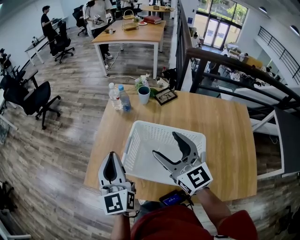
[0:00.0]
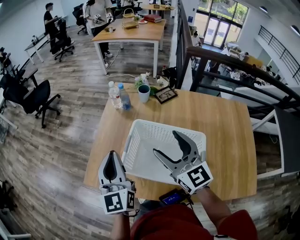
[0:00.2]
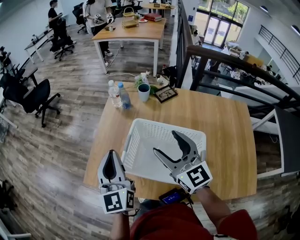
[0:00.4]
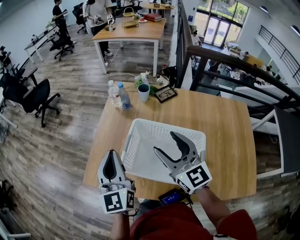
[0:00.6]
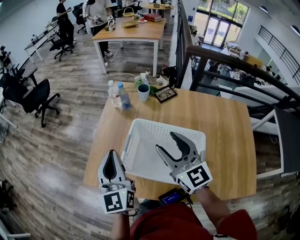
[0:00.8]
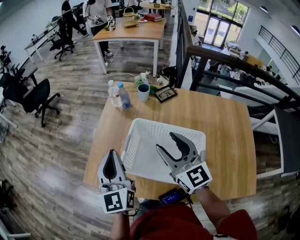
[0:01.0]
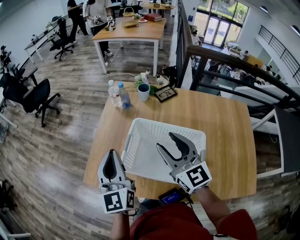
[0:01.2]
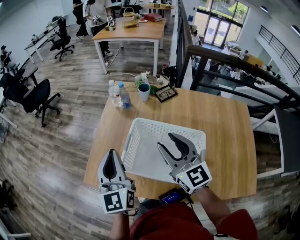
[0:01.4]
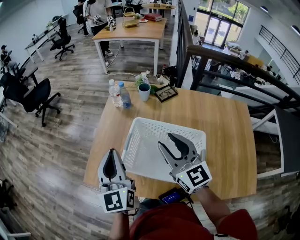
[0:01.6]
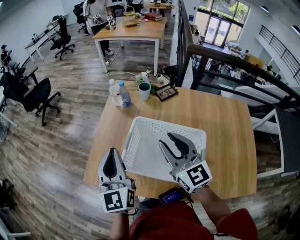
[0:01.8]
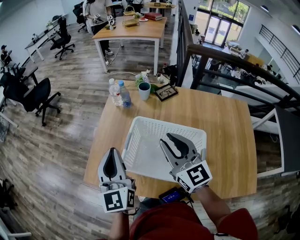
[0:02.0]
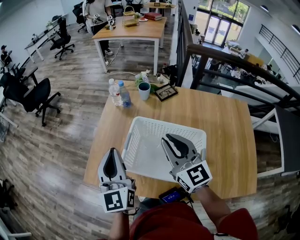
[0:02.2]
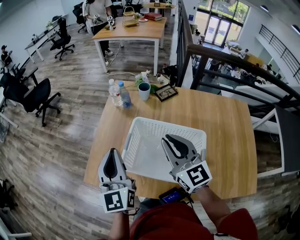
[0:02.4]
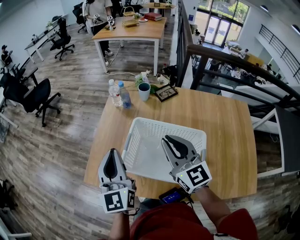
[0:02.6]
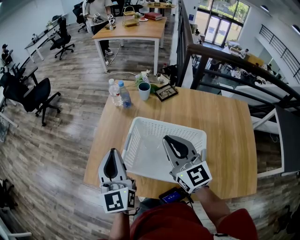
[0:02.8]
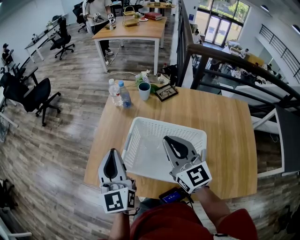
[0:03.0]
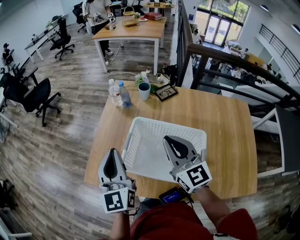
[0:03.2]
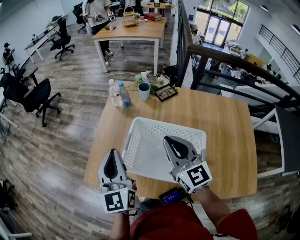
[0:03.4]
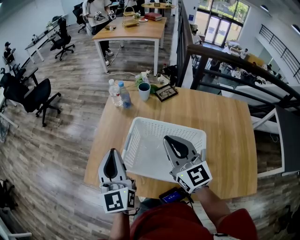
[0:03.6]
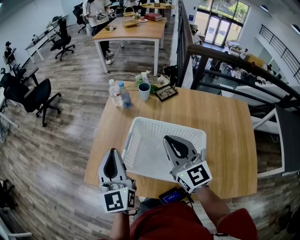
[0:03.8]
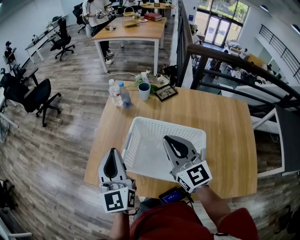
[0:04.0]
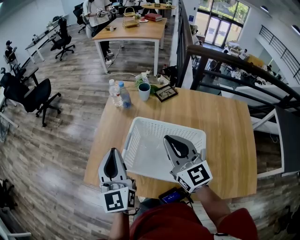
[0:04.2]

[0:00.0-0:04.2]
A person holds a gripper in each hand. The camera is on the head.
0:00.0 to 0:01.4: The right gripper closes its fingers.
0:01.4 to 0:02.8: The right gripper closes up.
0:02.8 to 0:04.2: Both grippers stay about where they are.

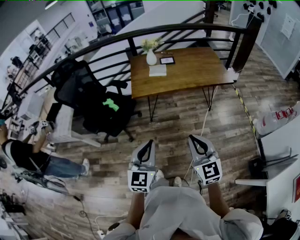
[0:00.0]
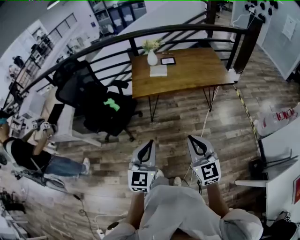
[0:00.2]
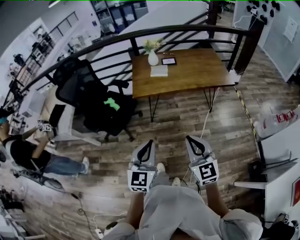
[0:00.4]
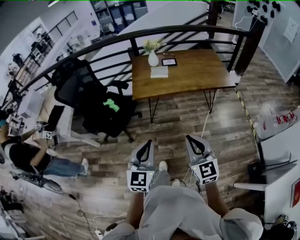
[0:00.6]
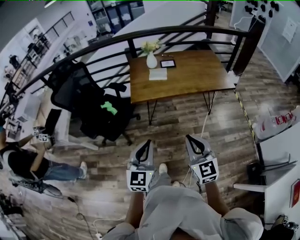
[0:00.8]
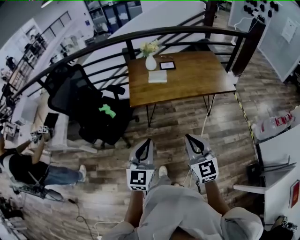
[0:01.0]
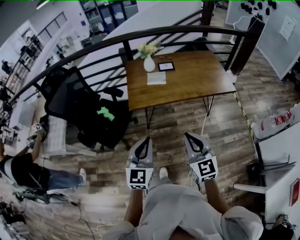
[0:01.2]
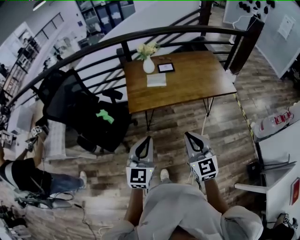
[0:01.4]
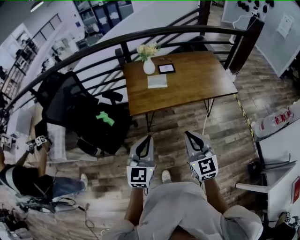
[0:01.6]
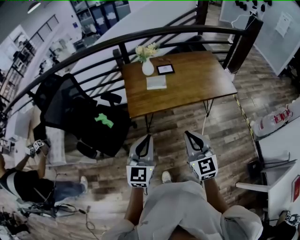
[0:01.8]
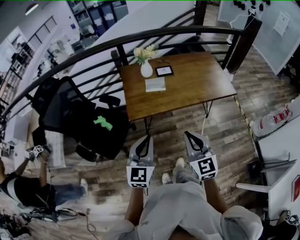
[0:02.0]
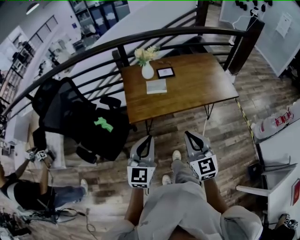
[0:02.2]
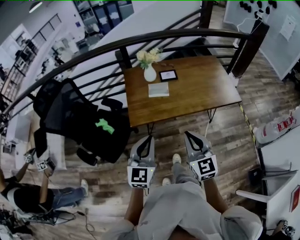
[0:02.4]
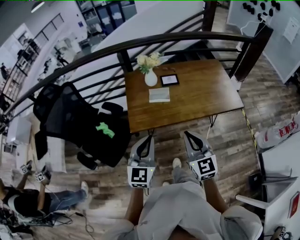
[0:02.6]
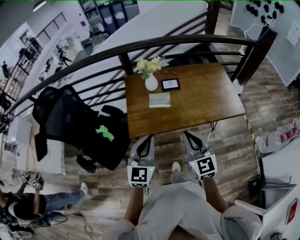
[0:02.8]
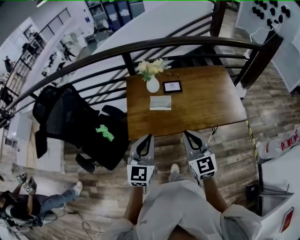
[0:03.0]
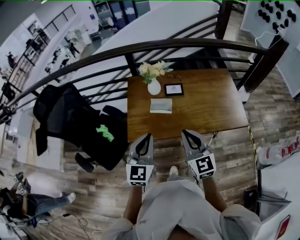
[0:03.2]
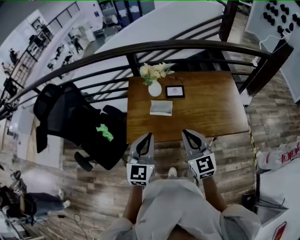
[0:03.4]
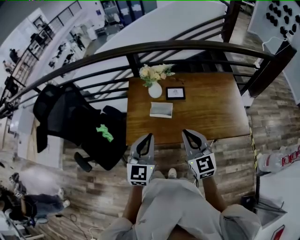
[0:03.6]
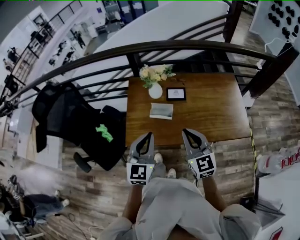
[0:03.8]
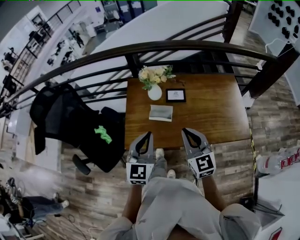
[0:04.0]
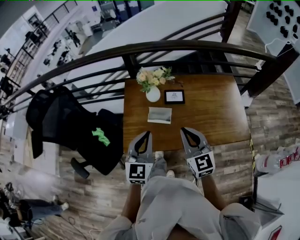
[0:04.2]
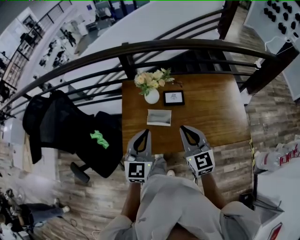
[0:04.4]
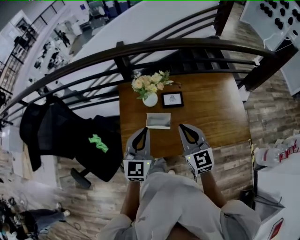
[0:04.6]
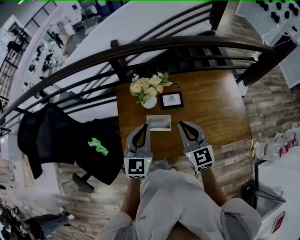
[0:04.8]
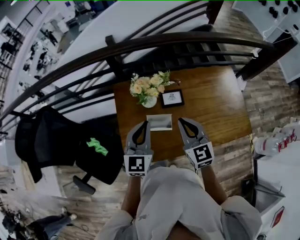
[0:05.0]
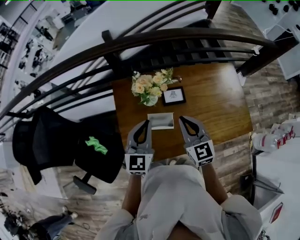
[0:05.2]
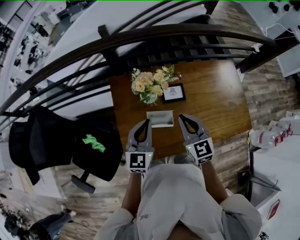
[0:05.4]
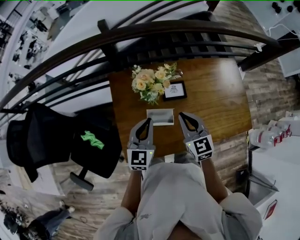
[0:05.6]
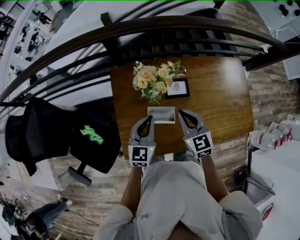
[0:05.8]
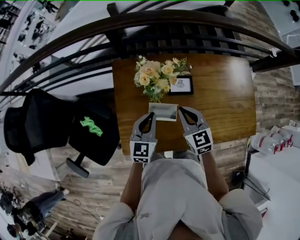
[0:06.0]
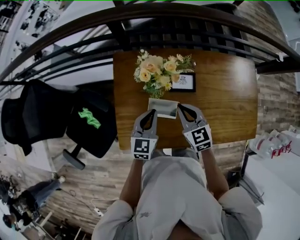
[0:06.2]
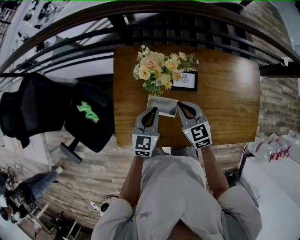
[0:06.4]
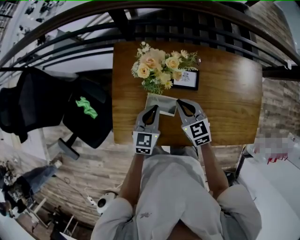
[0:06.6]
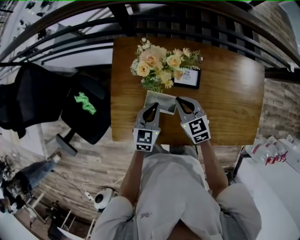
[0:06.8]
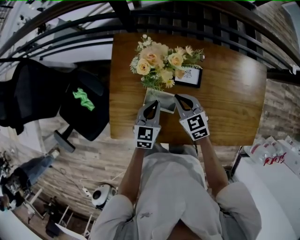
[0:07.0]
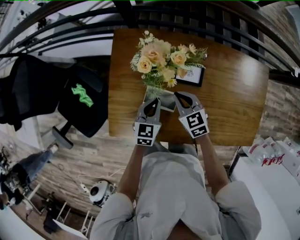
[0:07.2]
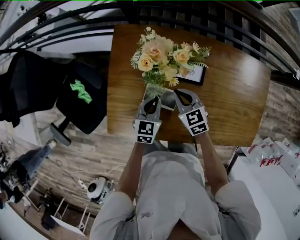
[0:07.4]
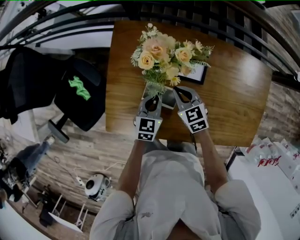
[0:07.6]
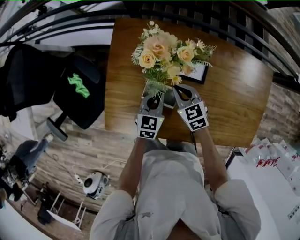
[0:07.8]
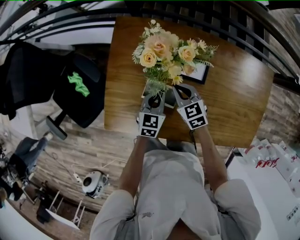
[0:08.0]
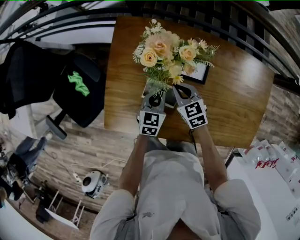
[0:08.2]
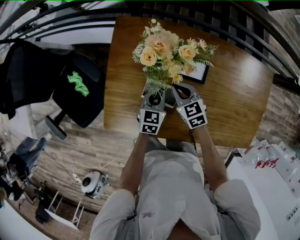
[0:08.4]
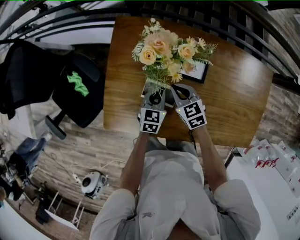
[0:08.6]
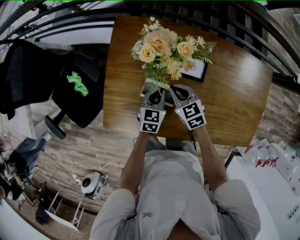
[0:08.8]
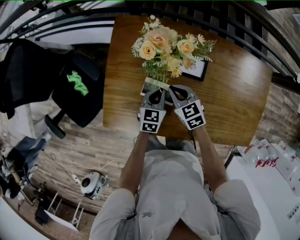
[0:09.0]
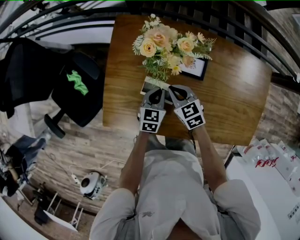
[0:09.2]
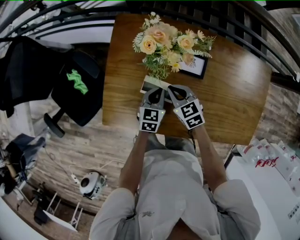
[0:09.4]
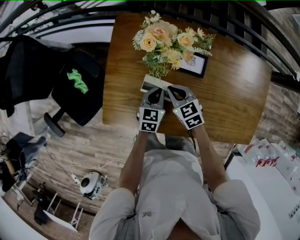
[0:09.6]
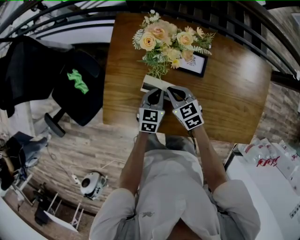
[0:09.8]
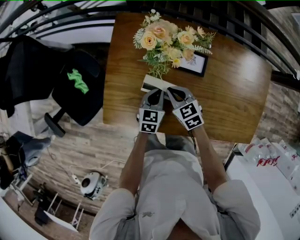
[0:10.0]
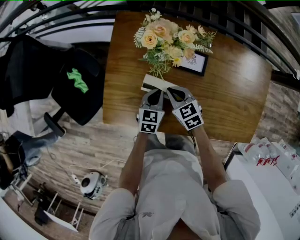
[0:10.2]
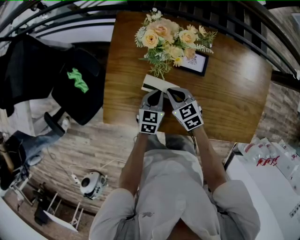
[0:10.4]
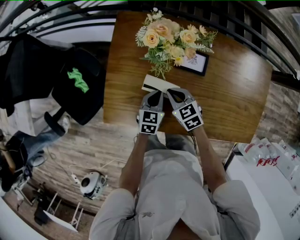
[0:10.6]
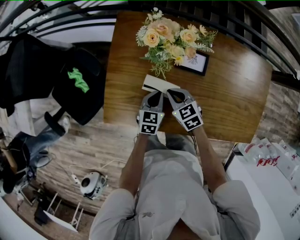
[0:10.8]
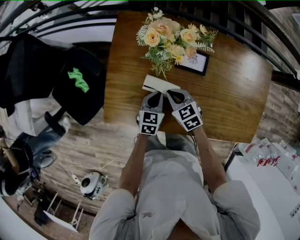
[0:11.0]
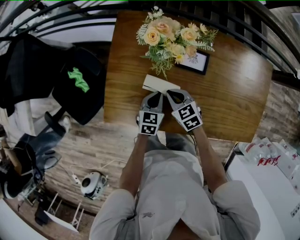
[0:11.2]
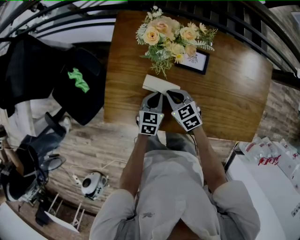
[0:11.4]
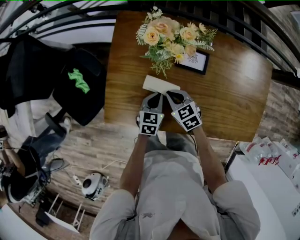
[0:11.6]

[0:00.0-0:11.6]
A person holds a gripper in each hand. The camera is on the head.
0:00.0 to 0:01.4: Both grippers move forward, about 20 cm.
0:01.4 to 0:02.8: The two grippers go some 20 cm forward.
0:02.8 to 0:04.4: Both grippers move forward, approximately 20 cm.
0:04.4 to 0:05.8: Both grippers travel together forward and downward, about 20 cm.
0:05.8 to 0:07.2: The two grippers go roughly 15 cm downward. The right gripper swivels approximately 30 degrees.
0:07.2 to 0:08.8: The left gripper moves downward, approximately 5 cm.
0:08.8 to 0:10.2: The grippers stay close to where they were, moving slightly.
0:10.2 to 0:11.6: There are only small adjustments of the grippers.

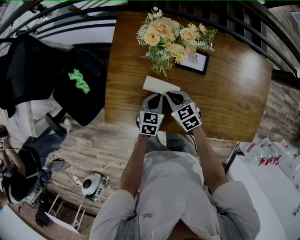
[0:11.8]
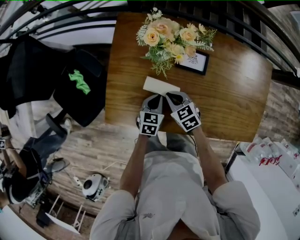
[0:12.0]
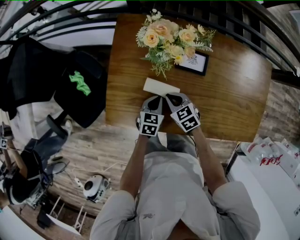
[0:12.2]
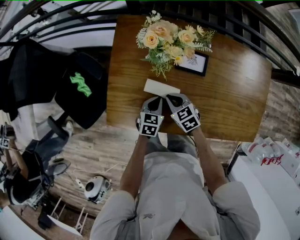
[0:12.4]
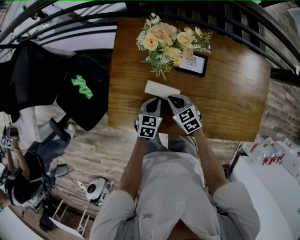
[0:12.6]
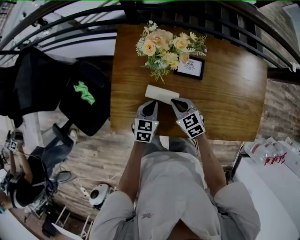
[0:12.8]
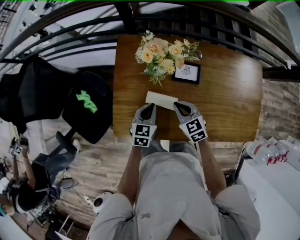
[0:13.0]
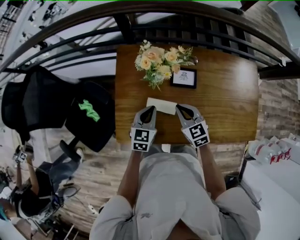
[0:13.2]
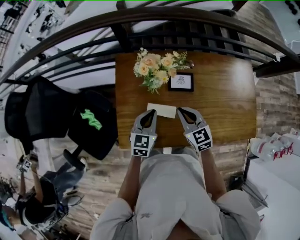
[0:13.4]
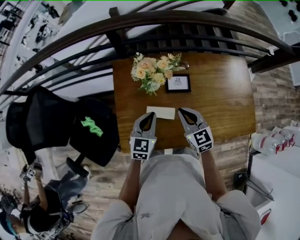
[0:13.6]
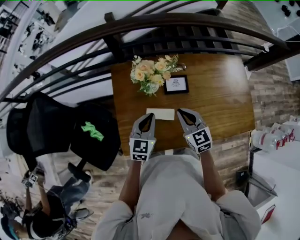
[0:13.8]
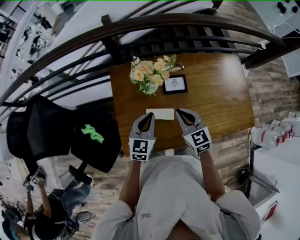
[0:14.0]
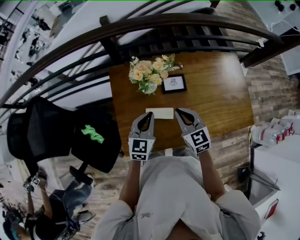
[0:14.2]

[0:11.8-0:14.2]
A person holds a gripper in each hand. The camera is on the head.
0:11.8 to 0:13.0: The two grippers go some 5 cm upward.
0:13.0 to 0:14.2: The grippers both shift upward by approximately 10 cm. The right gripper swivels some 20 degrees. The left gripper rotates roughly 20 degrees.

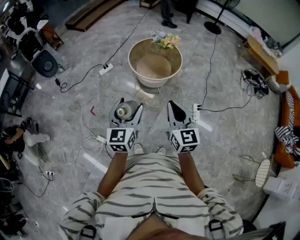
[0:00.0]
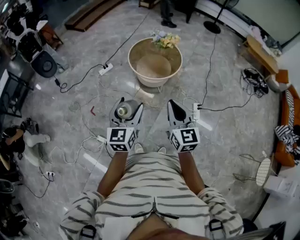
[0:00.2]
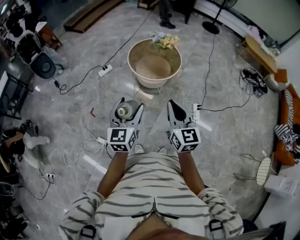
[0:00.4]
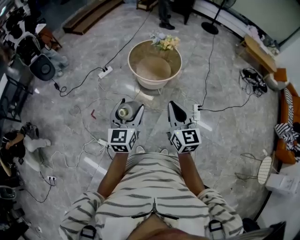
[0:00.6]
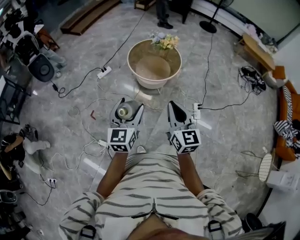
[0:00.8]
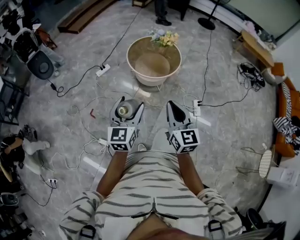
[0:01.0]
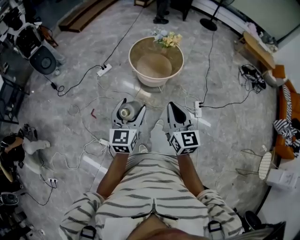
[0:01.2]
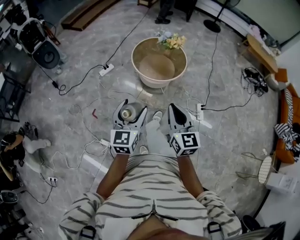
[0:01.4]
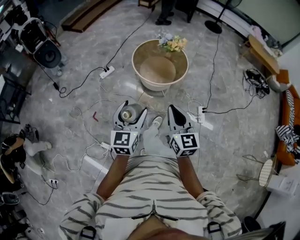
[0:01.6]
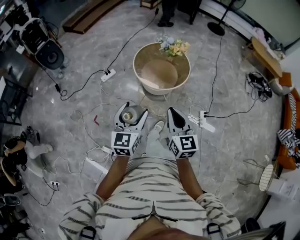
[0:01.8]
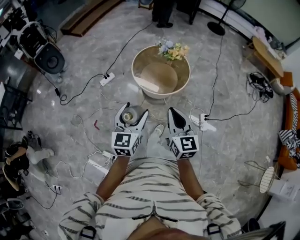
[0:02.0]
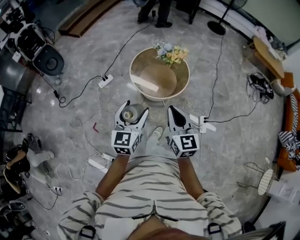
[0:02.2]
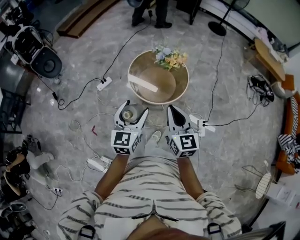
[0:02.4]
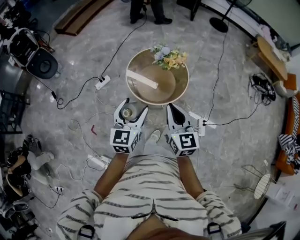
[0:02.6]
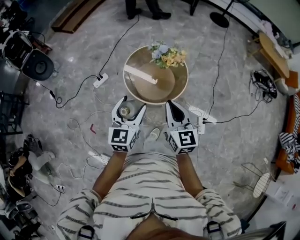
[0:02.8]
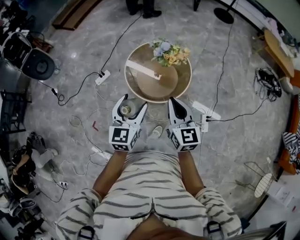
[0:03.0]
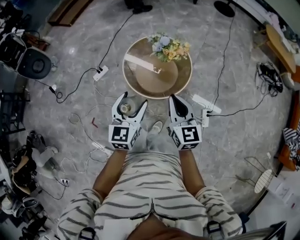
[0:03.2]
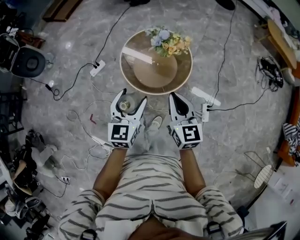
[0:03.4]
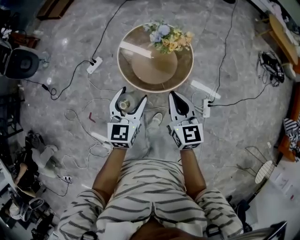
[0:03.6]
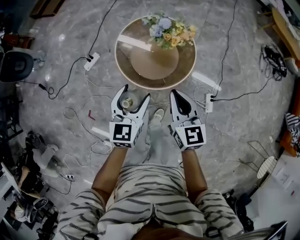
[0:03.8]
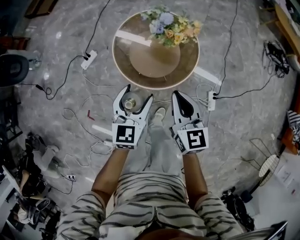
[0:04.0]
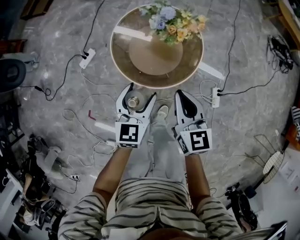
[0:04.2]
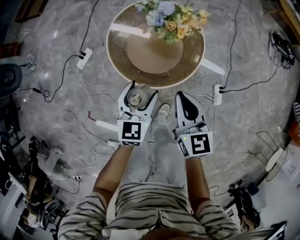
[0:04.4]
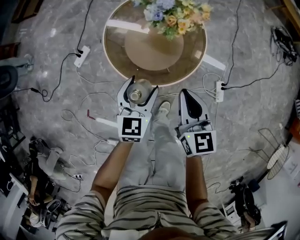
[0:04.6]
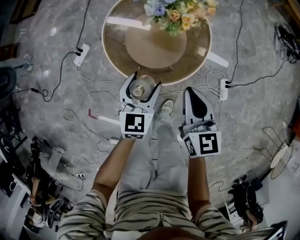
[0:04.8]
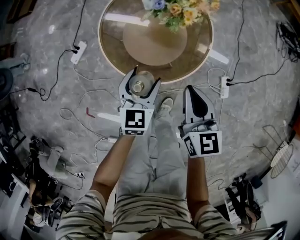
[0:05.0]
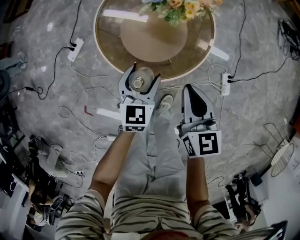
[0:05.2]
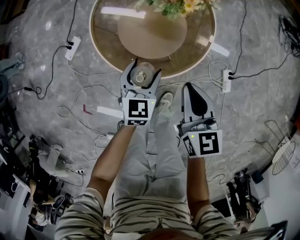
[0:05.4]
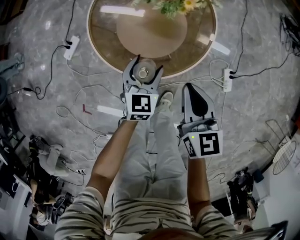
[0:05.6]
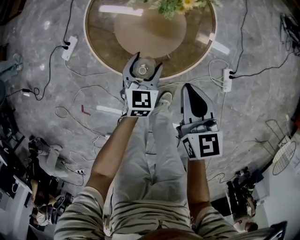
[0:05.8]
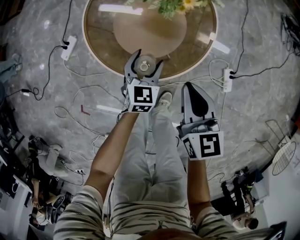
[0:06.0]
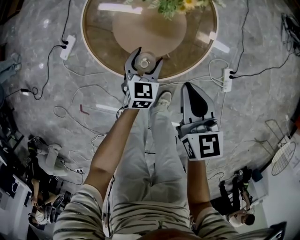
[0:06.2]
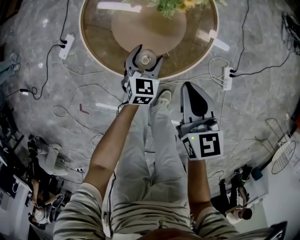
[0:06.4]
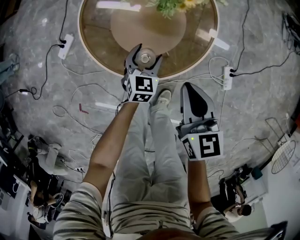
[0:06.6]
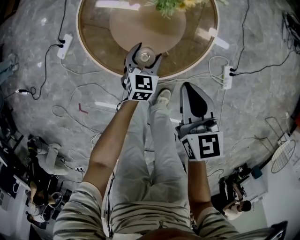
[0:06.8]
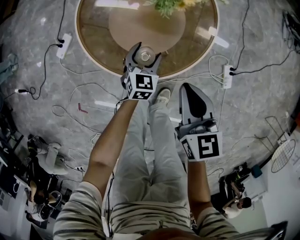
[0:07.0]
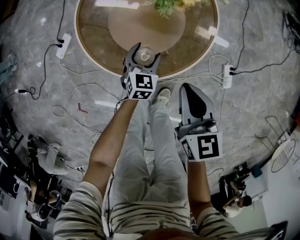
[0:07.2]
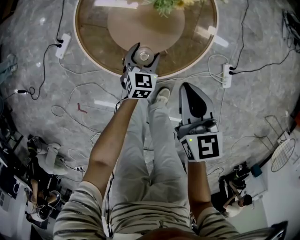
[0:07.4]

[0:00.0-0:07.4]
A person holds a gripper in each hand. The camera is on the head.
0:00.0 to 0:01.4: The two grippers go roughly 5 cm to the left.
0:01.4 to 0:03.0: Both grippers move forward, roughly 35 cm.
0:03.0 to 0:04.4: Both grippers travel together downward and forward, roughly 25 cm.
0:04.4 to 0:06.0: The right gripper moves downward, about 15 cm, while the left gripper travels downward by about 25 cm.
0:06.0 to 0:07.4: The left gripper moves downward, about 10 cm.
